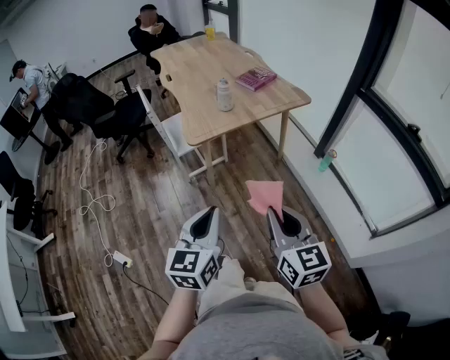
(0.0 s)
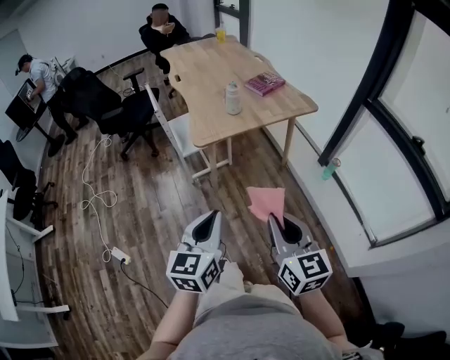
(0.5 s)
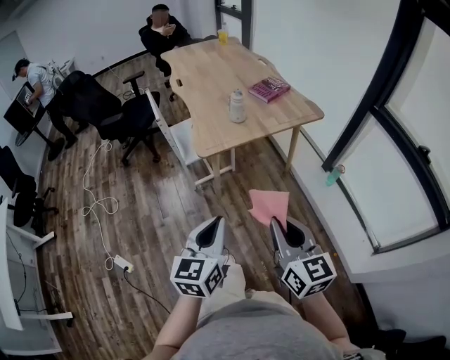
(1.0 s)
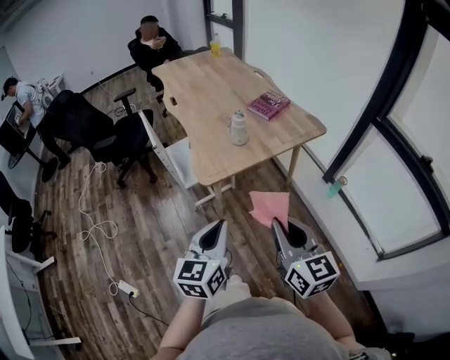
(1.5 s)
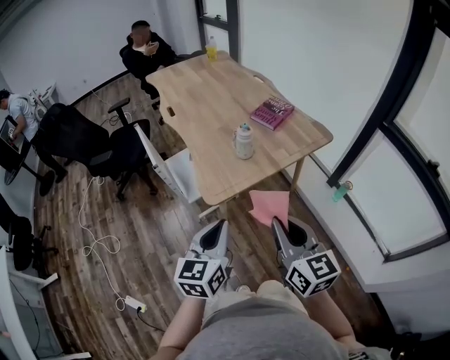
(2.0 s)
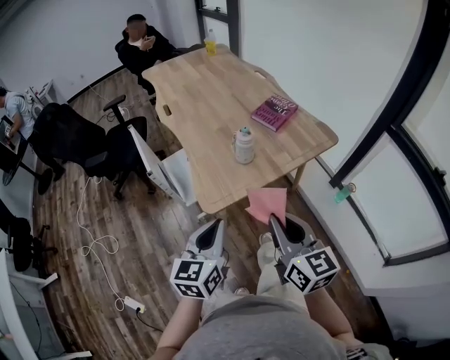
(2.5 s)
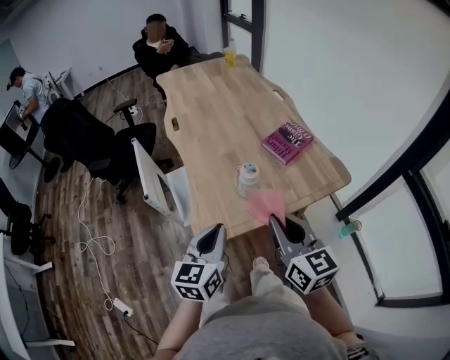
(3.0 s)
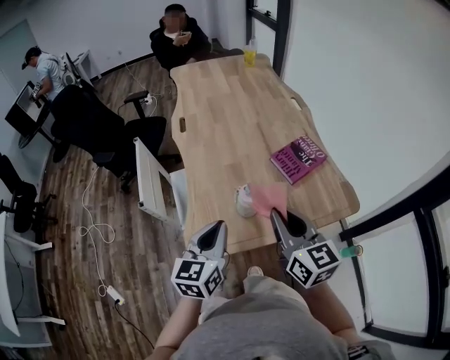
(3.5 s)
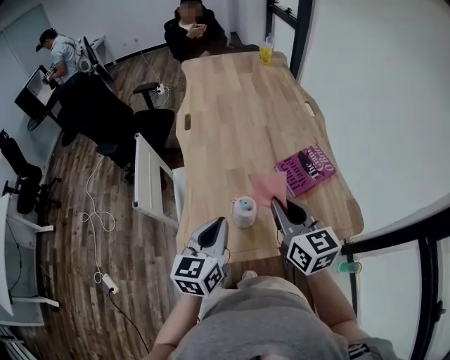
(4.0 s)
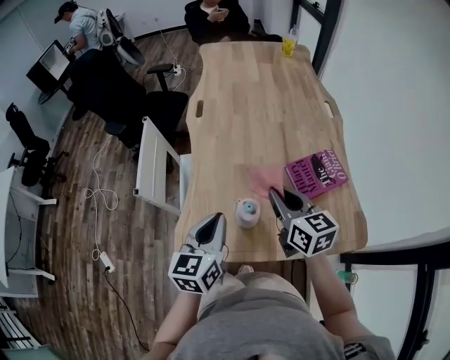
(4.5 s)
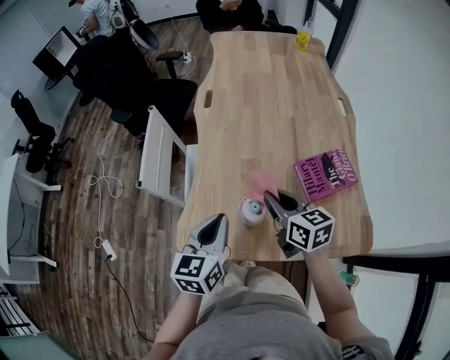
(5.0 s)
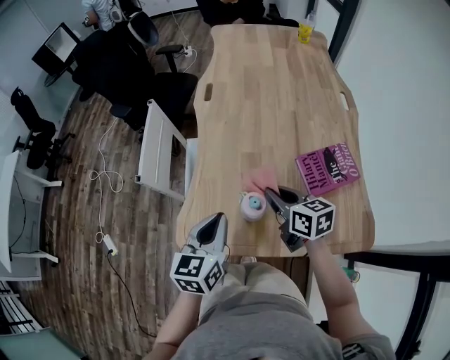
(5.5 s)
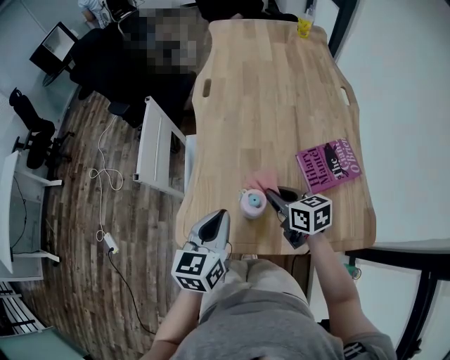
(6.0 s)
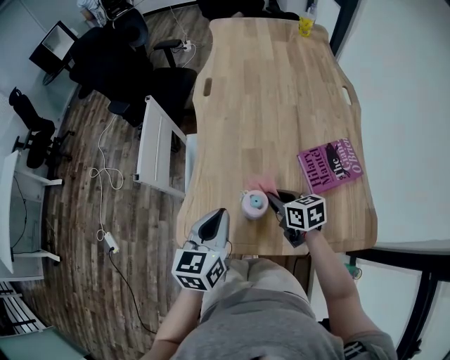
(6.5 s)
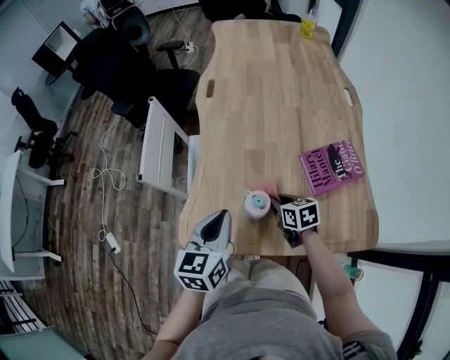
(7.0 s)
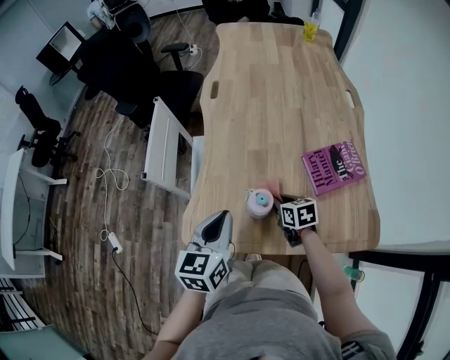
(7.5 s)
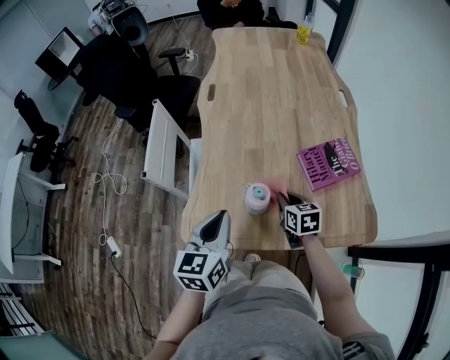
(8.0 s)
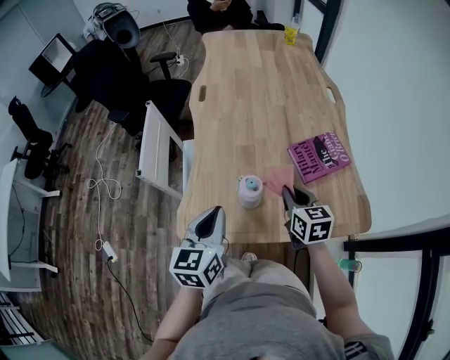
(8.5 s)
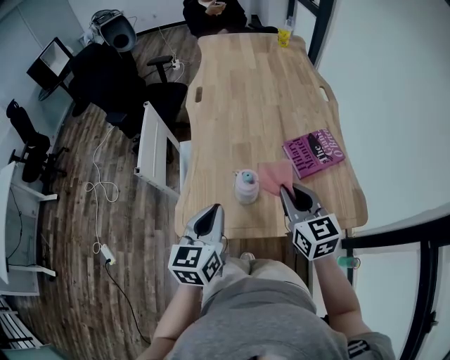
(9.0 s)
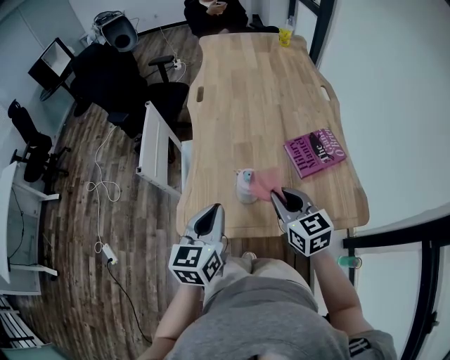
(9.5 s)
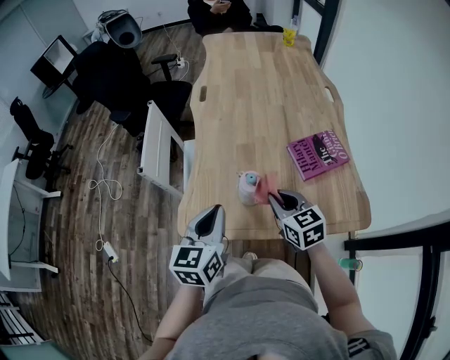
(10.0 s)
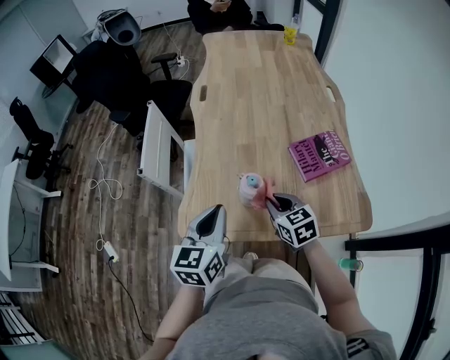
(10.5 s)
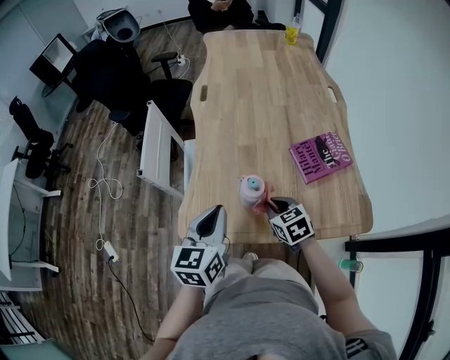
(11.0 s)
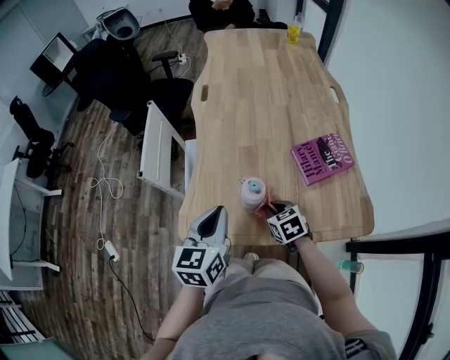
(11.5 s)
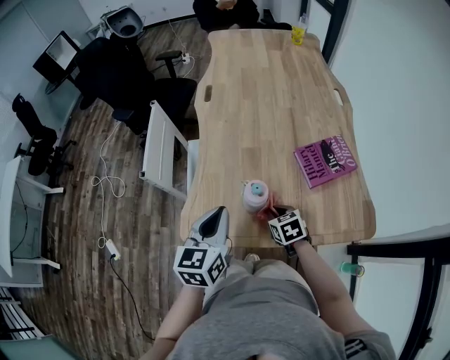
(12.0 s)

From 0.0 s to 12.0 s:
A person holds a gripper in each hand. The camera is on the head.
From 0.0 s to 2.0 s: The two grippers go roughly 25 cm forward.
From 2.0 s to 4.0 s: Both grippers move forward, some 35 cm. The left gripper swivels some 20 degrees. Meanwhile the right gripper turns by roughly 20 degrees.
From 4.0 s to 6.0 s: The right gripper heads downward and forward, covering about 20 cm, and rotates about 40 degrees. Meanwhile the left gripper shifts about 5 cm downward.
From 6.0 s to 8.0 s: The right gripper heads downward, covering some 5 cm.
From 8.0 s to 10.0 s: The right gripper heads upward and backward, covering approximately 10 cm, and rotates about 20 degrees.
From 10.0 s to 12.0 s: The right gripper shifts some 15 cm downward, and rotates about 20 degrees.

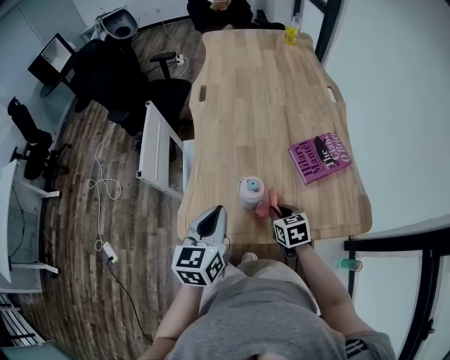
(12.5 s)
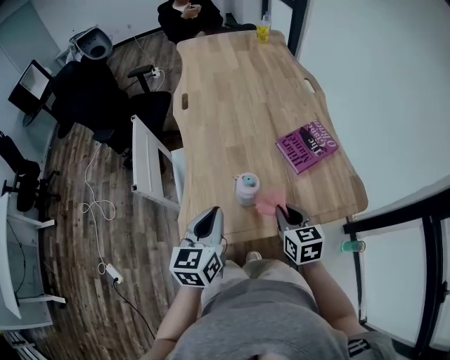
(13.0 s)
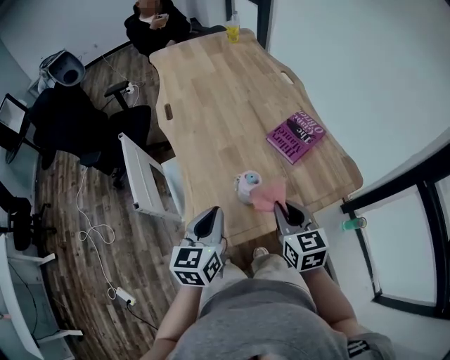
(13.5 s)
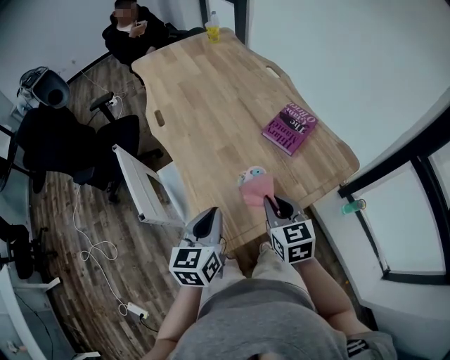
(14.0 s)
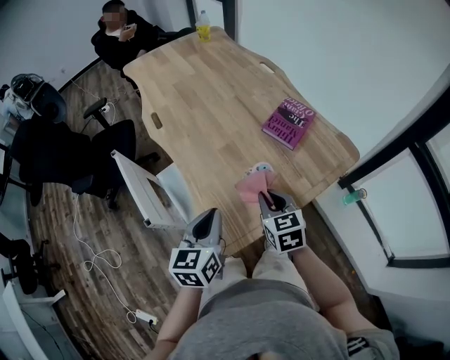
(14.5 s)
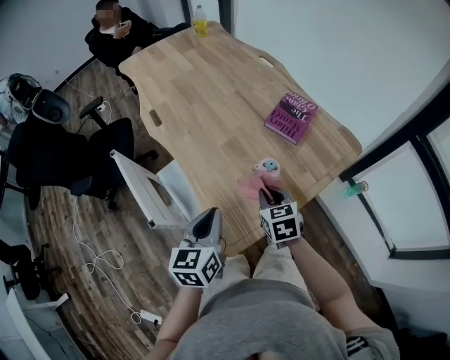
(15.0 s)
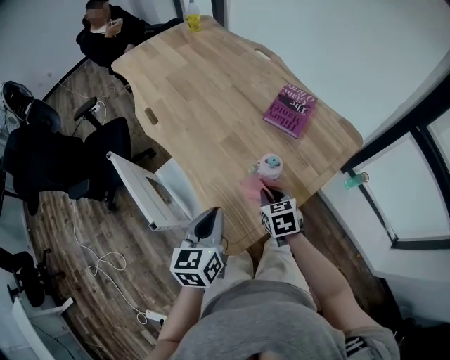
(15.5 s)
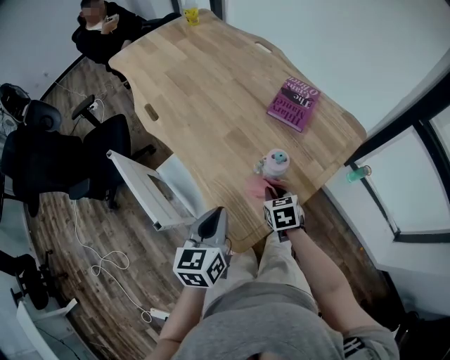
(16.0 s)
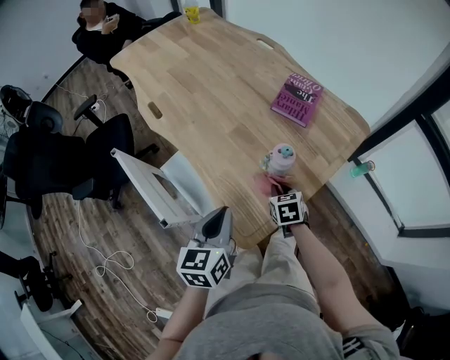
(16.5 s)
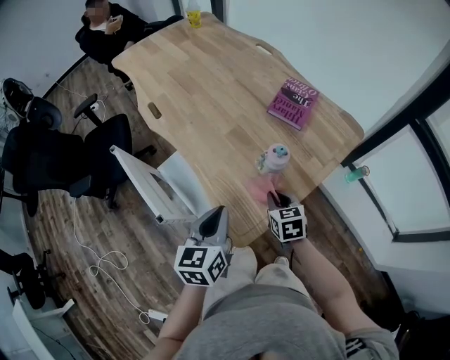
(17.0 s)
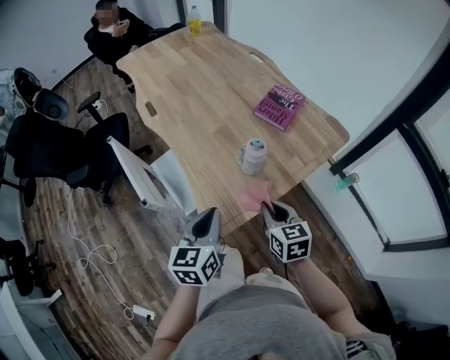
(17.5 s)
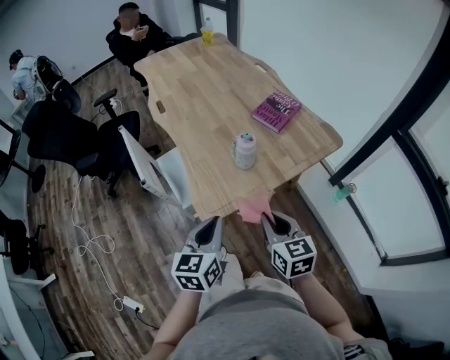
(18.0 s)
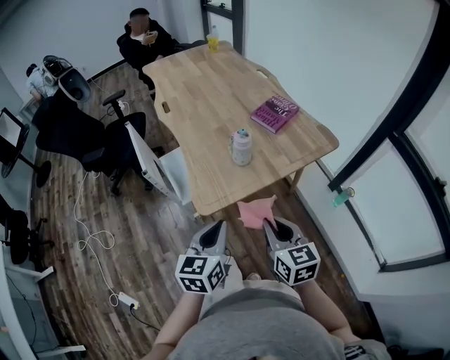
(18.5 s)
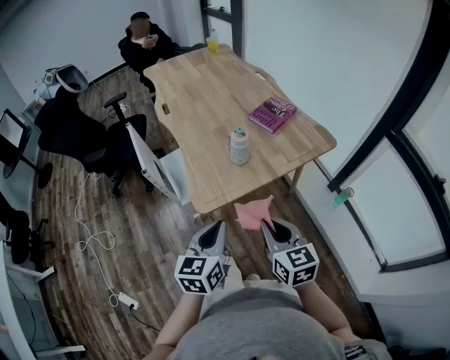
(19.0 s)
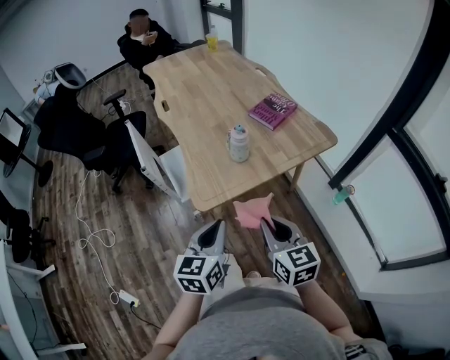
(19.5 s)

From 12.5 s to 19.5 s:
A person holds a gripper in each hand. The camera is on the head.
From 12.5 s to 14.5 s: The right gripper heads upward, covering some 15 cm, and changes its angle by about 30 degrees; the left gripper changes place by some 10 cm, and rotates roughly 30 degrees.
From 14.5 s to 16.0 s: The right gripper travels downward by approximately 15 cm, and rotates roughly 20 degrees.
From 16.0 s to 17.5 s: The left gripper moves backward, approximately 5 cm. Meanwhile the right gripper moves upward and backward, some 15 cm, and swivels roughly 20 degrees.
From 17.5 s to 19.5 s: The right gripper is displaced backward and upward by approximately 20 cm; the left gripper moves backward and to the right, approximately 20 cm.

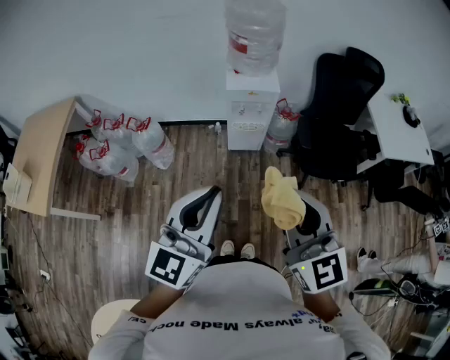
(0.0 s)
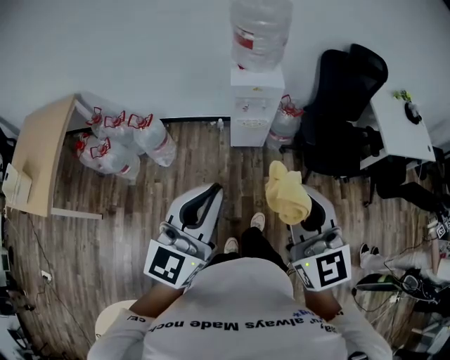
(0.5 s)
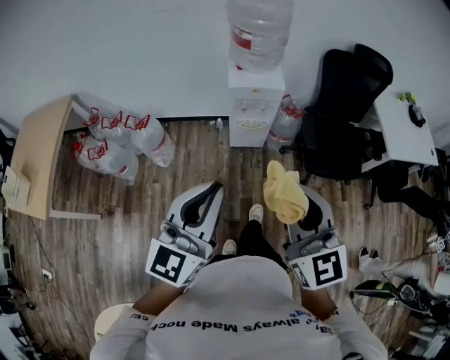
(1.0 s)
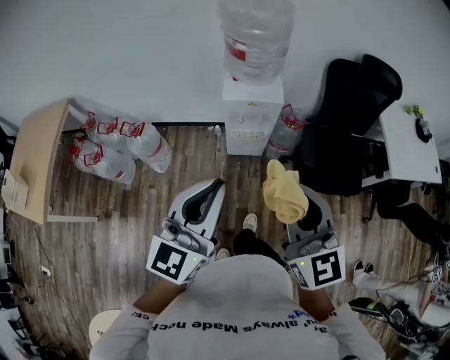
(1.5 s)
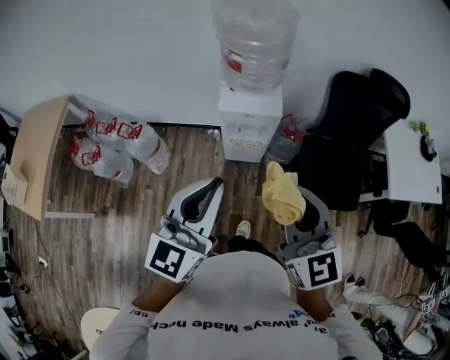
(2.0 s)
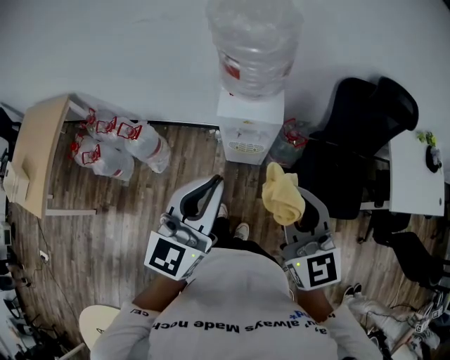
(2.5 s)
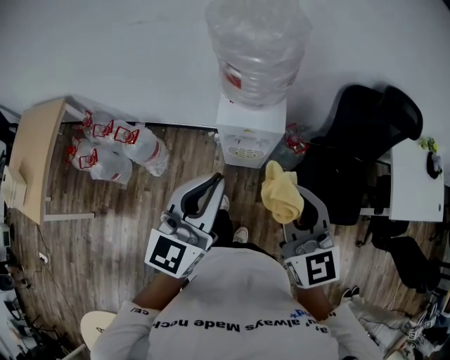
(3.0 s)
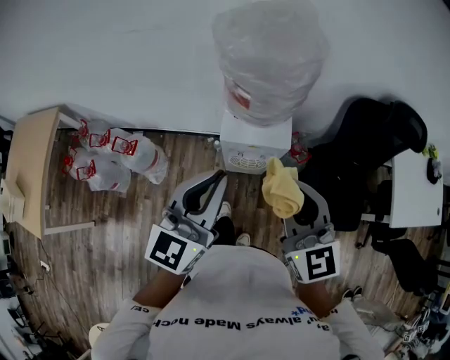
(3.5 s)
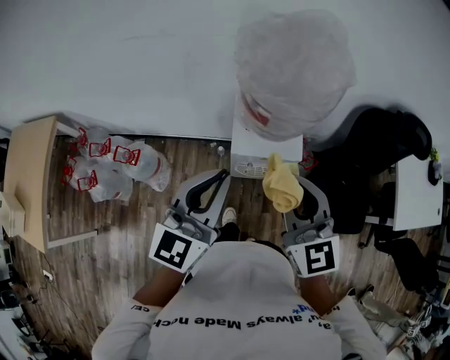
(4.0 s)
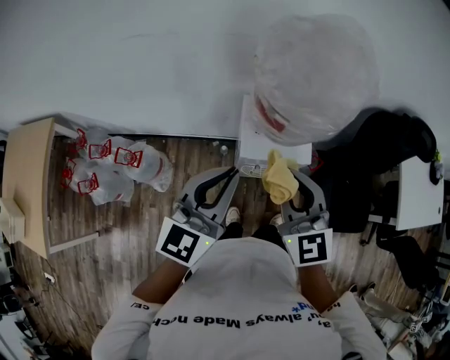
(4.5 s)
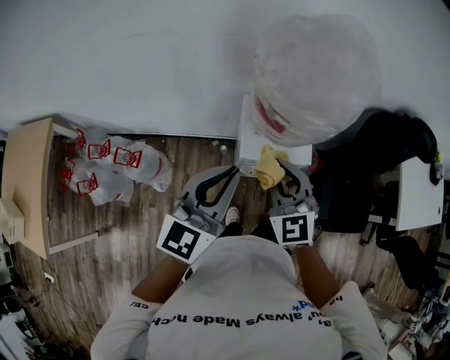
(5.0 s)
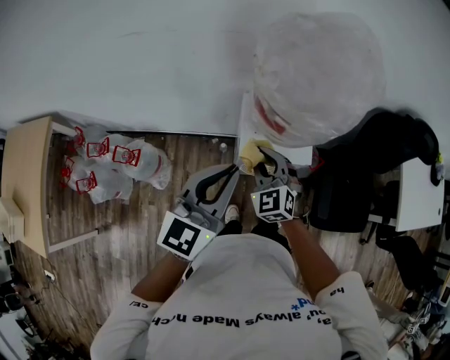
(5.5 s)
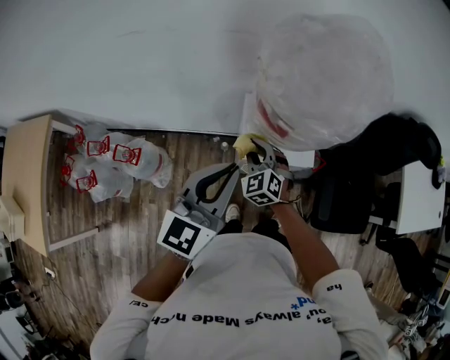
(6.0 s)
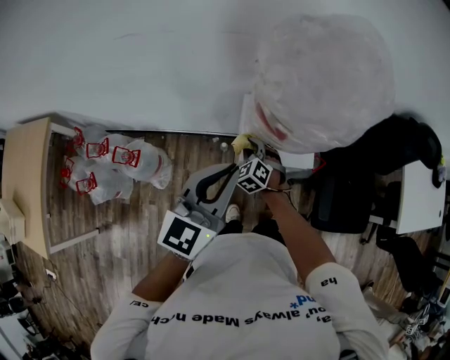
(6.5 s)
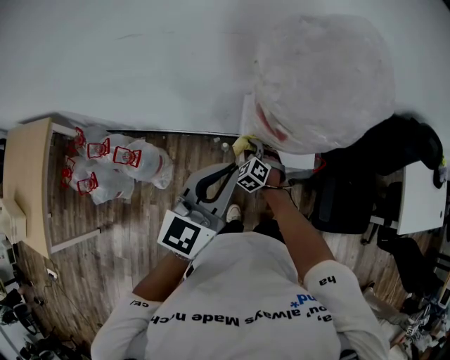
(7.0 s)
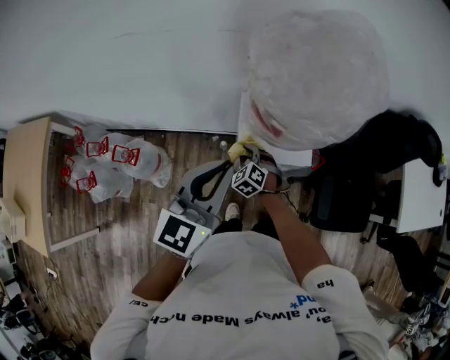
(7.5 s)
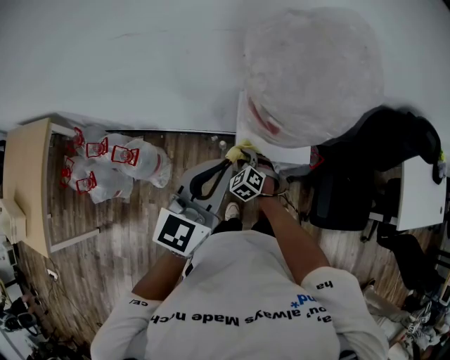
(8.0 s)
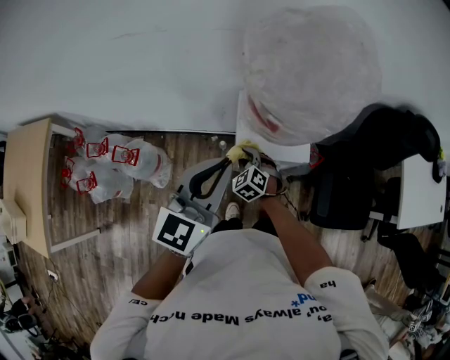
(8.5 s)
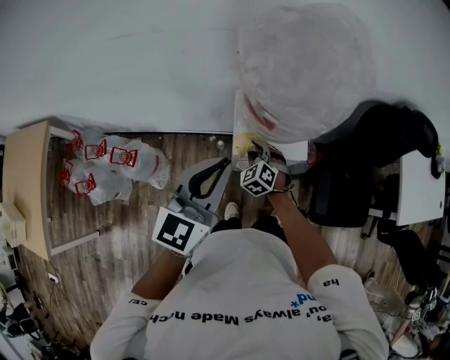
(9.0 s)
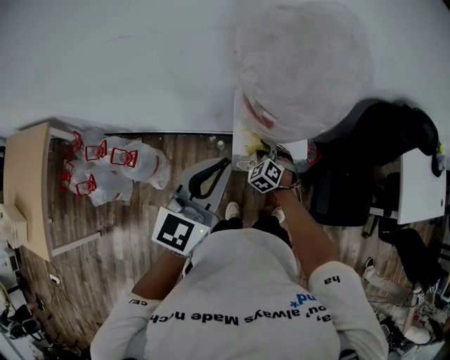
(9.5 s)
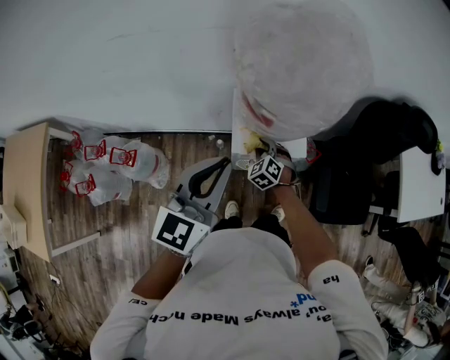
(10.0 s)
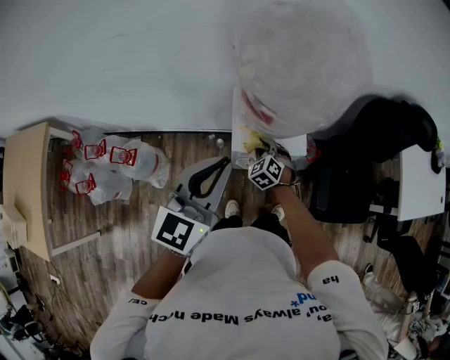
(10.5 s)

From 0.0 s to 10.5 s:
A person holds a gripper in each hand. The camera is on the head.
From 0.0 s to 2.0 s: The two grippers go some 25 cm forward.
From 2.0 s to 4.0 s: Both grippers move forward, approximately 25 cm.
From 4.0 s to 6.5 s: The right gripper is displaced downward and forward by some 40 cm, and points its fingers roughly 40 degrees further downward. The left gripper heads forward and downward, covering approximately 10 cm.
From 6.5 s to 8.5 s: The right gripper goes some 5 cm backward.
From 8.5 s to 10.5 s: The right gripper heads to the right, covering some 5 cm.
